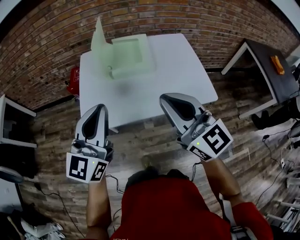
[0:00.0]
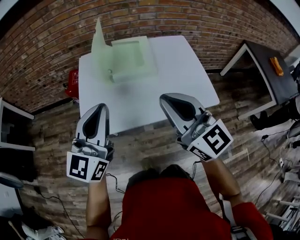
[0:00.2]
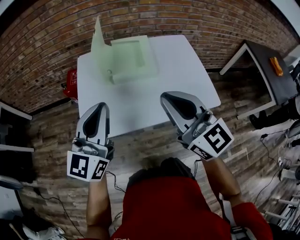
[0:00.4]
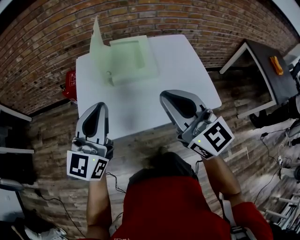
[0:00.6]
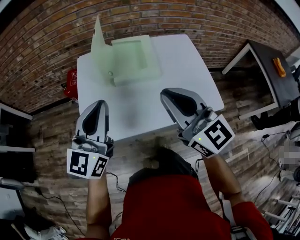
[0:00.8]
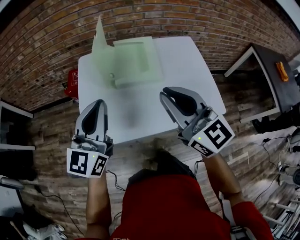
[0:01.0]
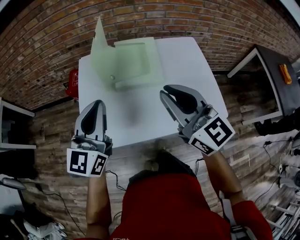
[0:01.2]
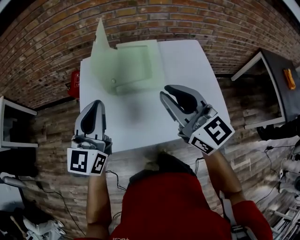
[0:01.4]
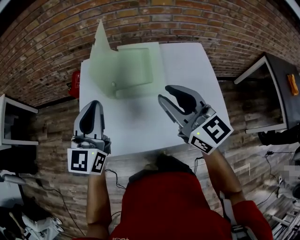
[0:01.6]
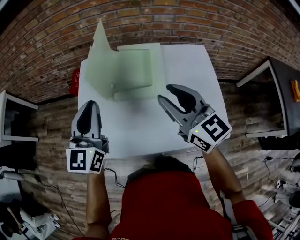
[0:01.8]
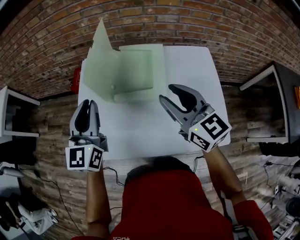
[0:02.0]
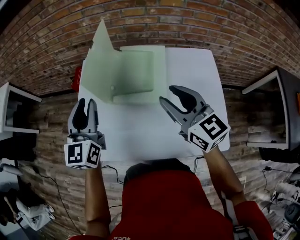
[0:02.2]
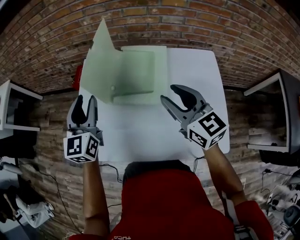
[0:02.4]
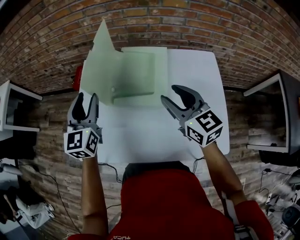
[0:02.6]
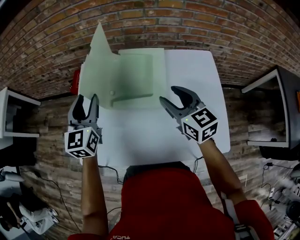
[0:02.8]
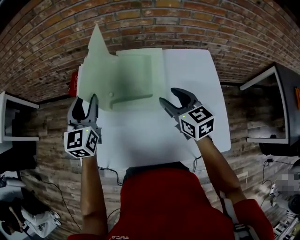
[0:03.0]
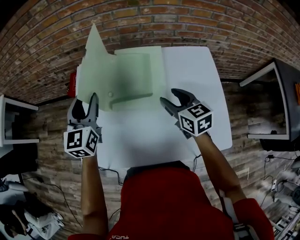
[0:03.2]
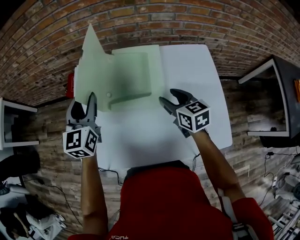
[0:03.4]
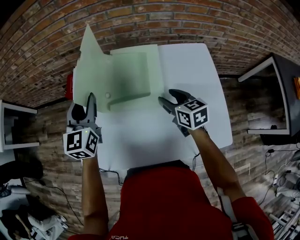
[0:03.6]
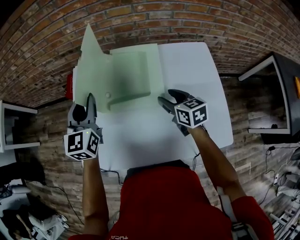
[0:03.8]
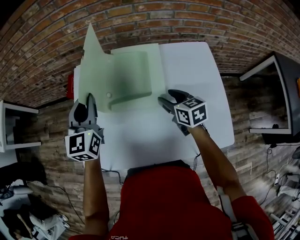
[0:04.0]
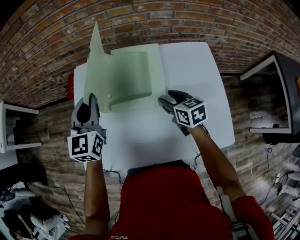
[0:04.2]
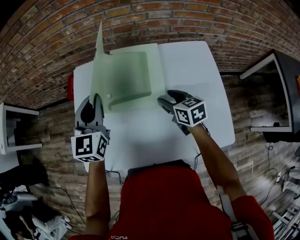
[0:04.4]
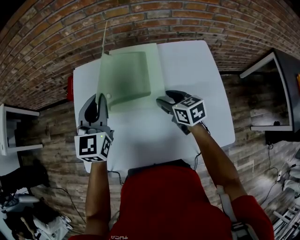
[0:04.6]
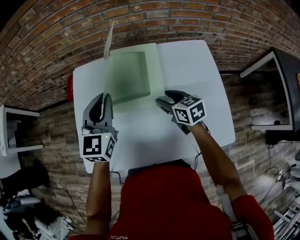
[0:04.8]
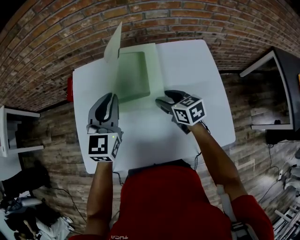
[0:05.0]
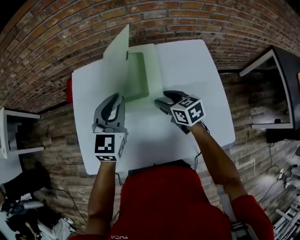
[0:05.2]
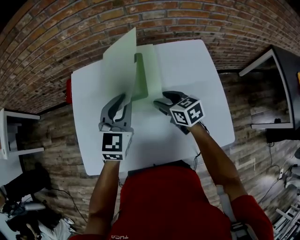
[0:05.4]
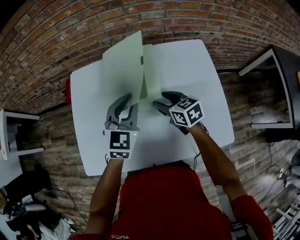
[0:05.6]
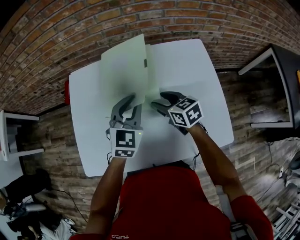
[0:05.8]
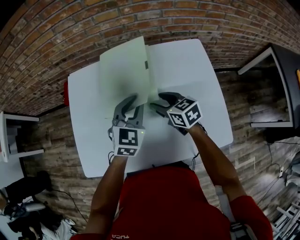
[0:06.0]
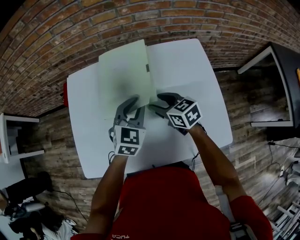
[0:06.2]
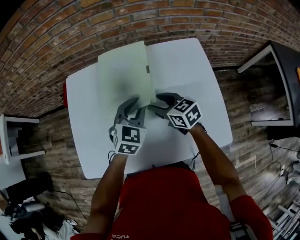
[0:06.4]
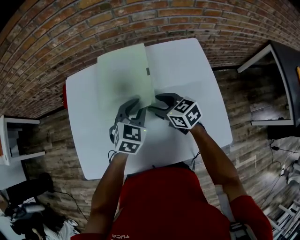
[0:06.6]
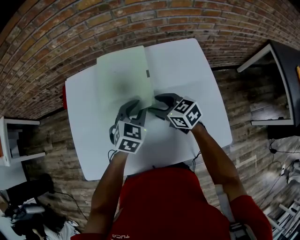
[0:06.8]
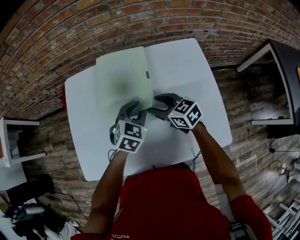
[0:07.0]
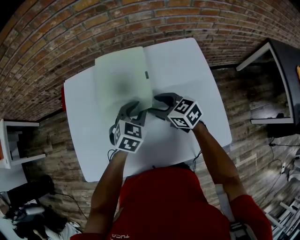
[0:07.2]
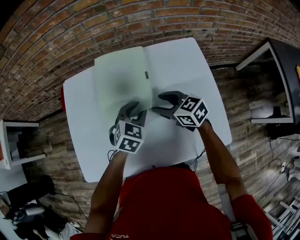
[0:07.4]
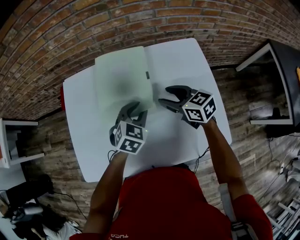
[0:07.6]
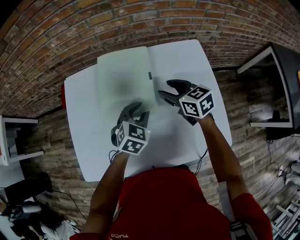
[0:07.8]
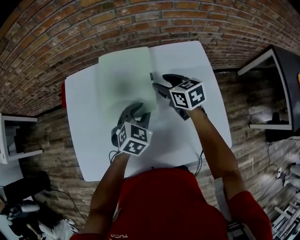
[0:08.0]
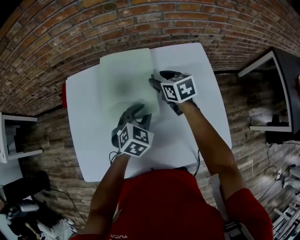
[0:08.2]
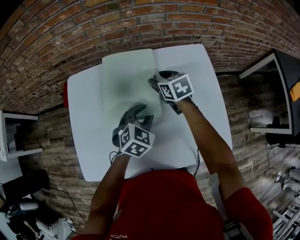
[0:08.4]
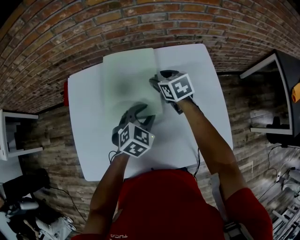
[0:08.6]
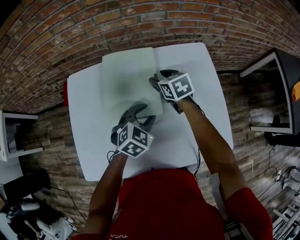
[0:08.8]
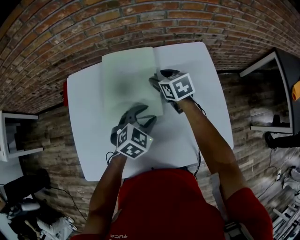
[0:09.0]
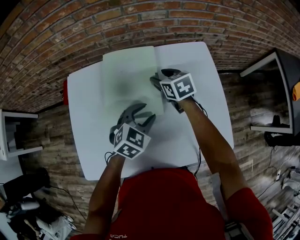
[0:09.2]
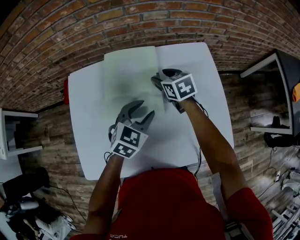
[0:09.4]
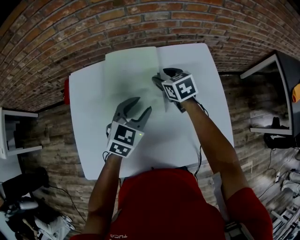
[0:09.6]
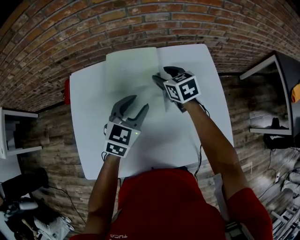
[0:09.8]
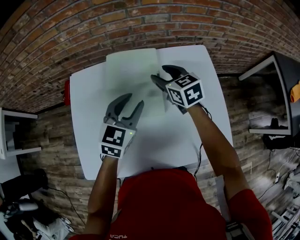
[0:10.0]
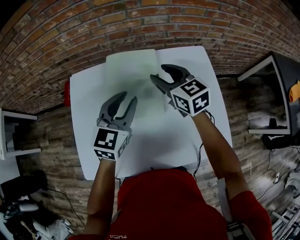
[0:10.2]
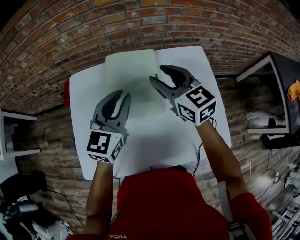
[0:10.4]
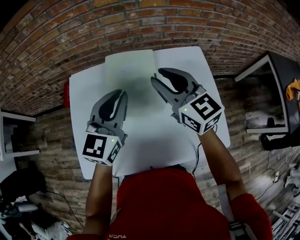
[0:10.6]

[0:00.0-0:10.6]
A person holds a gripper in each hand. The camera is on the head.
0:00.0 to 0:01.6: Both grippers travel together forward, roughly 20 cm.
0:01.6 to 0:03.0: The left gripper heads forward and downward, covering about 15 cm, and opens up. Meanwhile the right gripper is displaced downward, forward and to the right by approximately 20 cm, changes its angle by about 20 degrees, and opens its fingers.
0:03.0 to 0:04.6: The right gripper travels downward by approximately 10 cm. The left gripper travels to the right by roughly 5 cm, and closes.
0:04.6 to 0:06.0: The left gripper is displaced to the right and downward by roughly 15 cm, and rotates approximately 20 degrees.
0:06.0 to 0:07.6: The right gripper shifts some 5 cm to the right; the left gripper goes roughly 5 cm downward.
0:07.6 to 0:09.0: The right gripper moves forward, approximately 10 cm.
0:09.0 to 0:10.6: The right gripper travels upward and backward by roughly 25 cm, points its fingers some 30 degrees further upward, and closes. The left gripper is displaced upward and to the left by roughly 20 cm, tips its fingers upward by approximately 40 degrees, and closes.

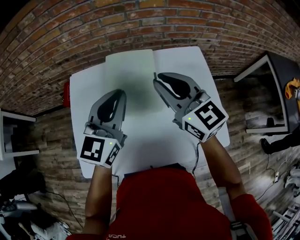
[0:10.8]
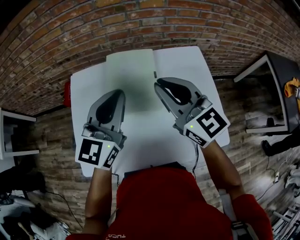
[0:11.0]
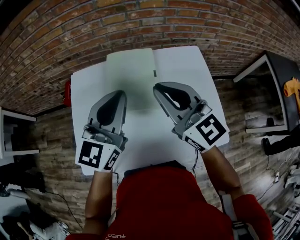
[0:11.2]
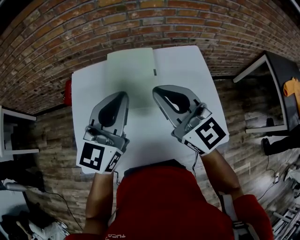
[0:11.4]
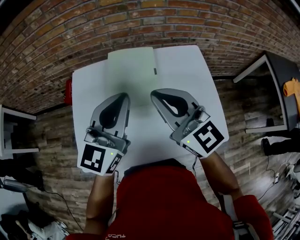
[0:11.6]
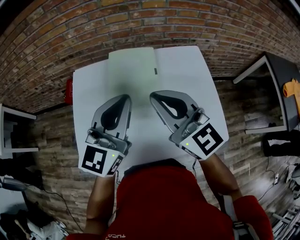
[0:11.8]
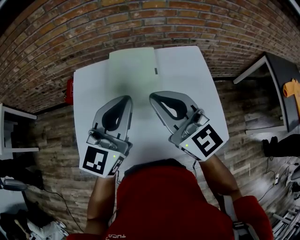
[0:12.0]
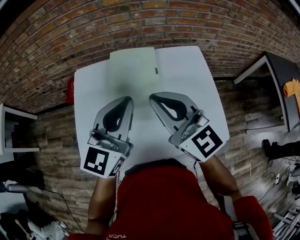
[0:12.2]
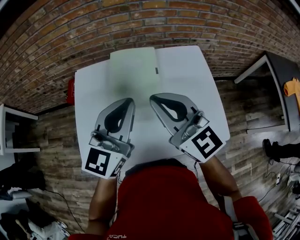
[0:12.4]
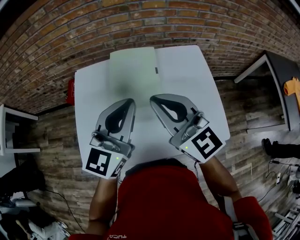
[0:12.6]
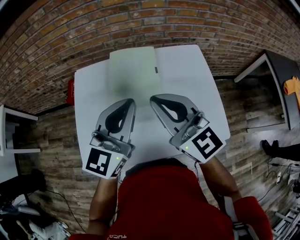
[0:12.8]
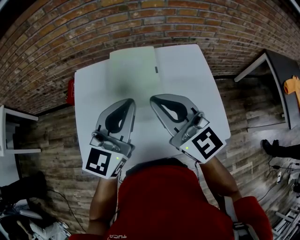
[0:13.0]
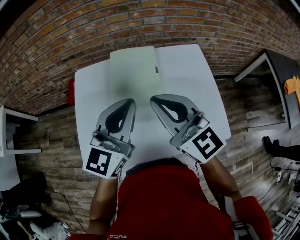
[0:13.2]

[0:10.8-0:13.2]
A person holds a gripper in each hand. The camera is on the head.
0:10.8 to 0:12.0: Both grippers travel together backward, some 10 cm.
0:12.0 to 0:13.2: Both grippers stay about where they are.

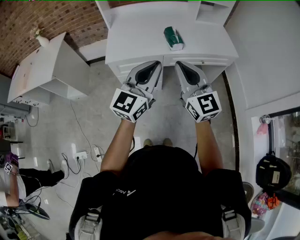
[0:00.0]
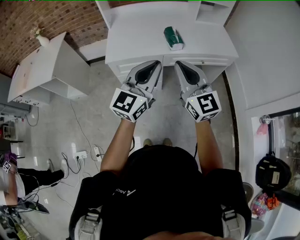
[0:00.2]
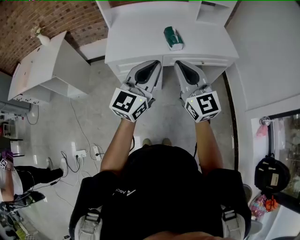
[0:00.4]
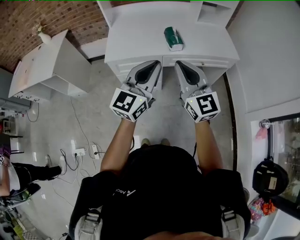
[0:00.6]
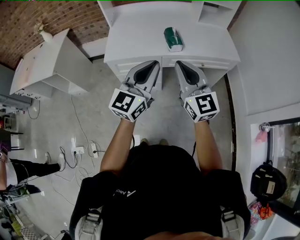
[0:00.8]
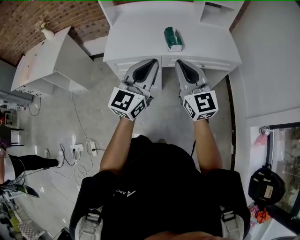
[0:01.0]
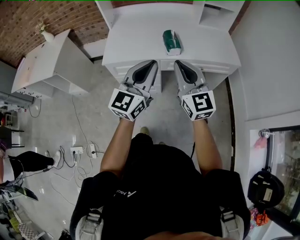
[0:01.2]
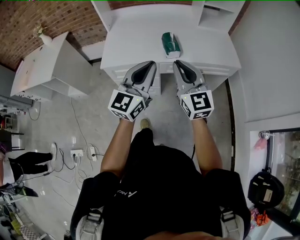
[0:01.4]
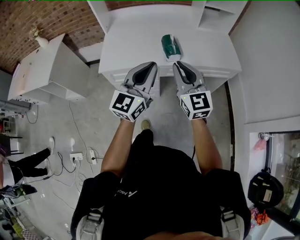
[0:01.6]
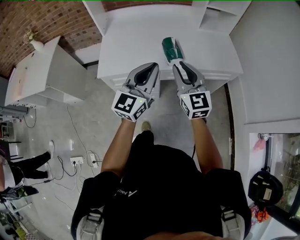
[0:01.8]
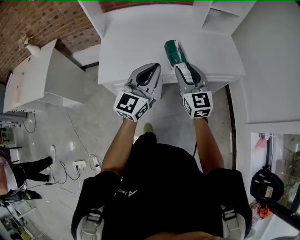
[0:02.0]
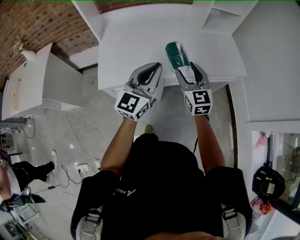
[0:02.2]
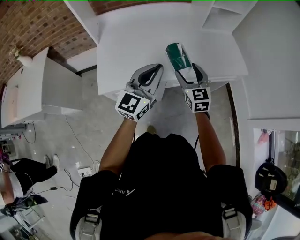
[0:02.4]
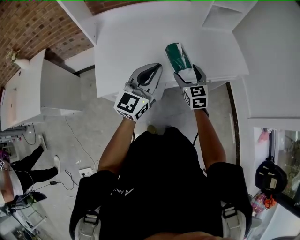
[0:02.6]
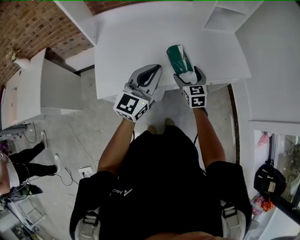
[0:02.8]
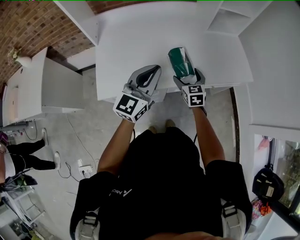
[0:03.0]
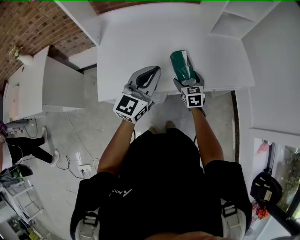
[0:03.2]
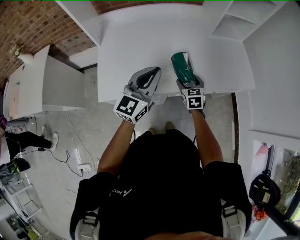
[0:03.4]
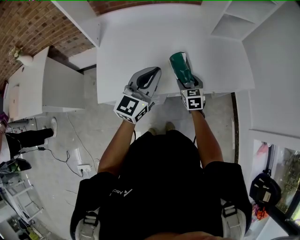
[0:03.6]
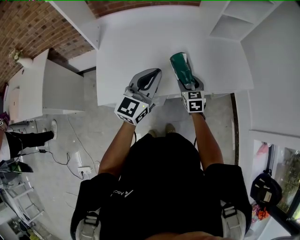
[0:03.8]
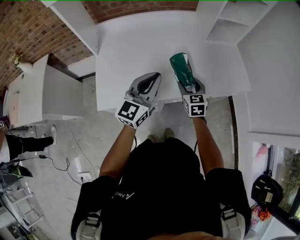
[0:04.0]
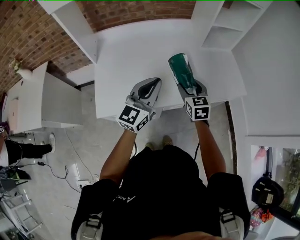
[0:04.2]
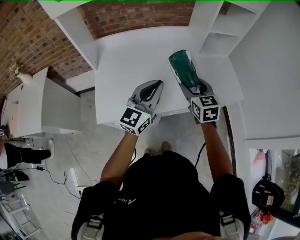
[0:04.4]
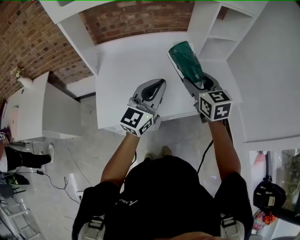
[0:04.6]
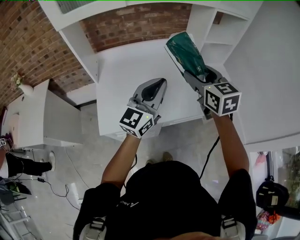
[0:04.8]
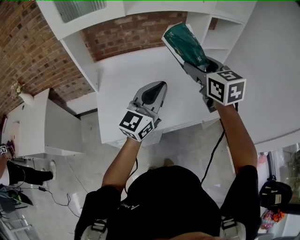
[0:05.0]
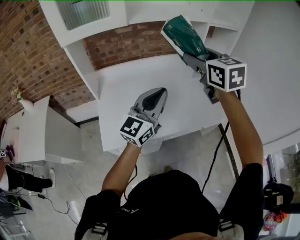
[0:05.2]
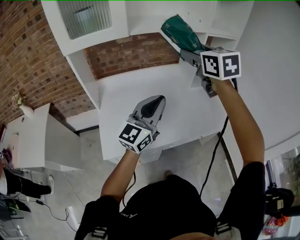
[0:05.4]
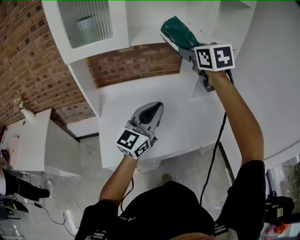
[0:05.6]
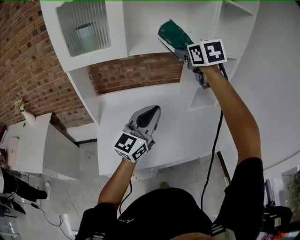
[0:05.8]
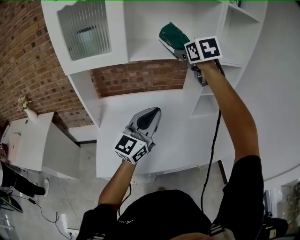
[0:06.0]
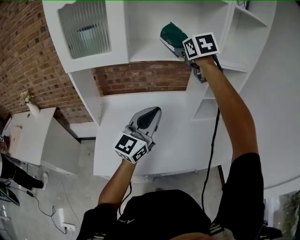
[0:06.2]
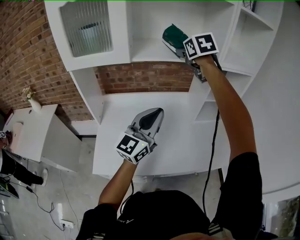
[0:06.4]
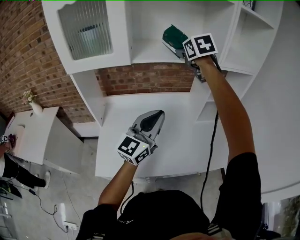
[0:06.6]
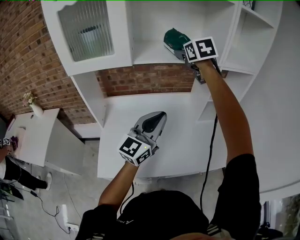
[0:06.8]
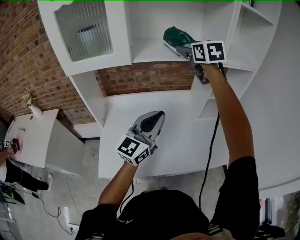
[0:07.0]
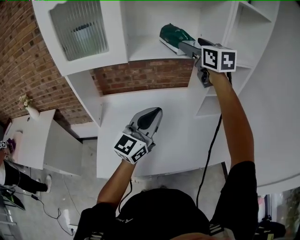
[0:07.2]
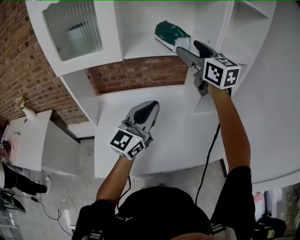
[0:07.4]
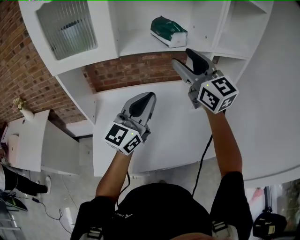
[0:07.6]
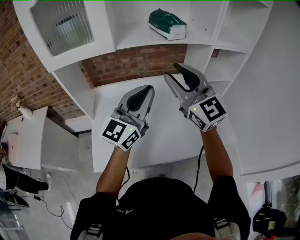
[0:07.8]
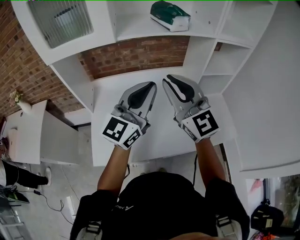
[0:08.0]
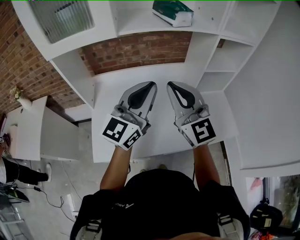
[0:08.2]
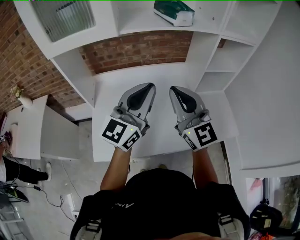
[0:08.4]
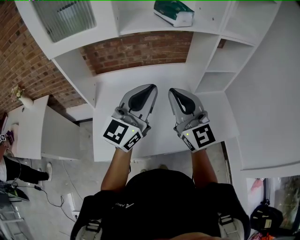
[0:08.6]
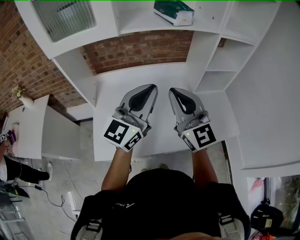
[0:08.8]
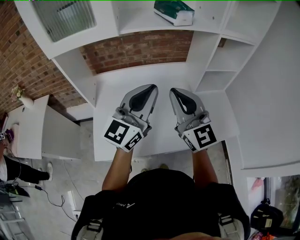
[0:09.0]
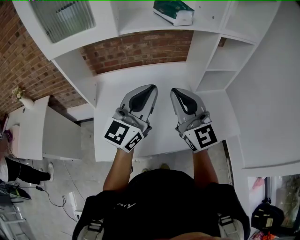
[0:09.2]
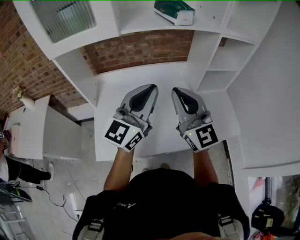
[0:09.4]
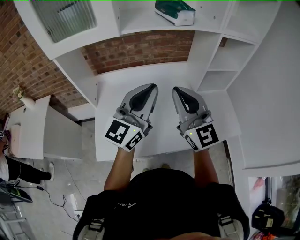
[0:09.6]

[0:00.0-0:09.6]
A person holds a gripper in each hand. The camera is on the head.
0:00.0 to 0:01.6: Both grippers move forward, roughly 15 cm.
0:01.6 to 0:03.2: The left gripper moves forward and to the left, approximately 25 cm; the right gripper shifts some 40 cm downward and forward, tilts its fingers some 40 degrees downward, and opens up.
0:03.2 to 0:04.8: The right gripper moves upward, some 35 cm, and closes its fingers; the left gripper heads upward, covering approximately 10 cm.
0:04.8 to 0:06.4: The right gripper travels forward and upward by some 35 cm; the left gripper is displaced forward and upward by some 15 cm.
0:06.4 to 0:08.0: The right gripper is displaced backward by roughly 25 cm, points its fingers approximately 40 degrees further upward, and closes.
0:08.0 to 0:09.6: The right gripper shifts by roughly 5 cm.

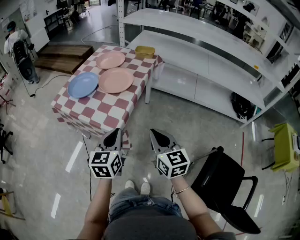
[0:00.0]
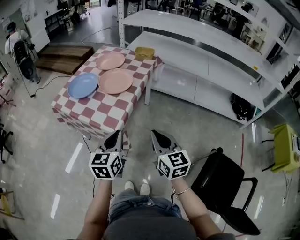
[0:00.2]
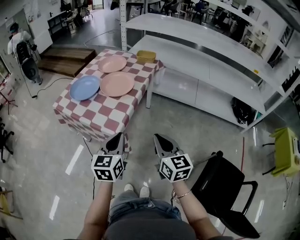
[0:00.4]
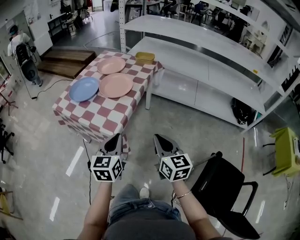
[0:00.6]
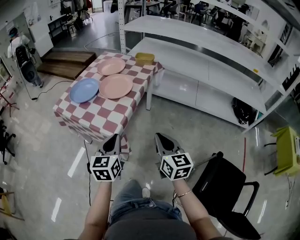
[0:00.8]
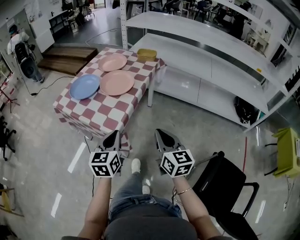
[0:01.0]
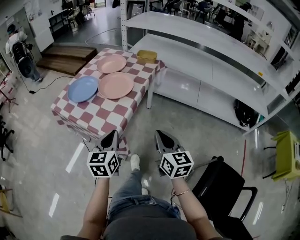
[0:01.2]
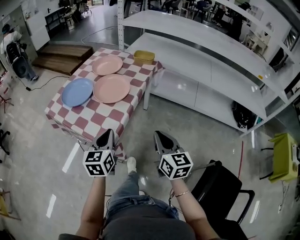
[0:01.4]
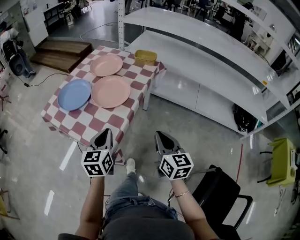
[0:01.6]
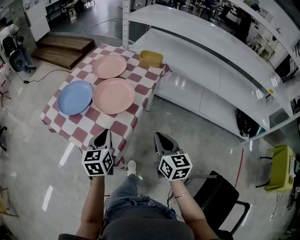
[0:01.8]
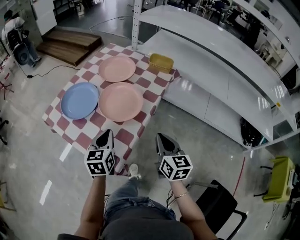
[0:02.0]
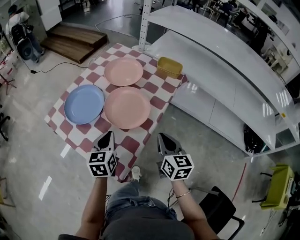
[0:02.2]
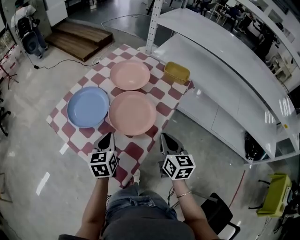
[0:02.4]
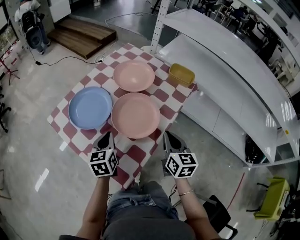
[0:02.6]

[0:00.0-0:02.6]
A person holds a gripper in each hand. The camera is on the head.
0:00.0 to 0:01.2: The right gripper changes place by approximately 5 cm.
0:01.2 to 0:02.6: Both grippers move forward, approximately 35 cm. The left gripper swivels some 20 degrees.
